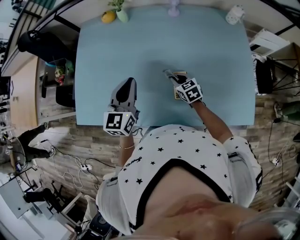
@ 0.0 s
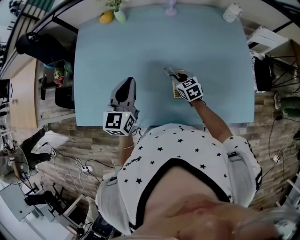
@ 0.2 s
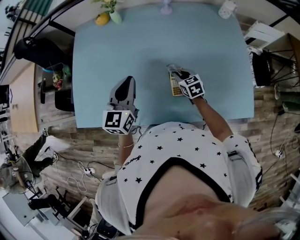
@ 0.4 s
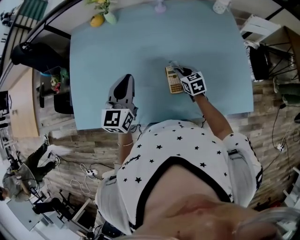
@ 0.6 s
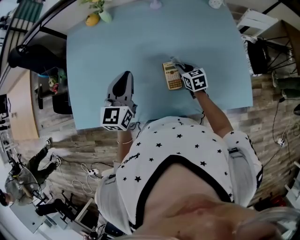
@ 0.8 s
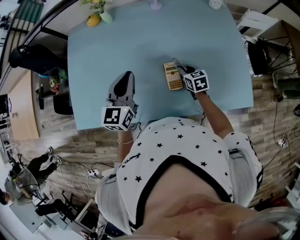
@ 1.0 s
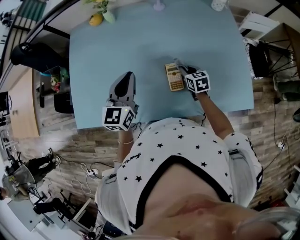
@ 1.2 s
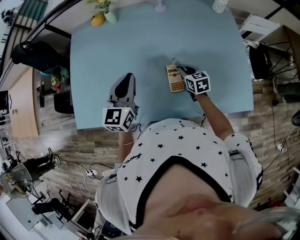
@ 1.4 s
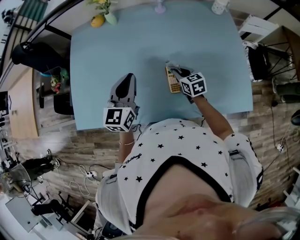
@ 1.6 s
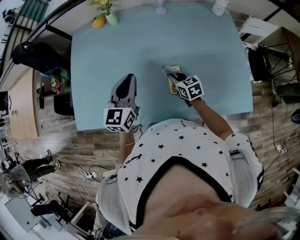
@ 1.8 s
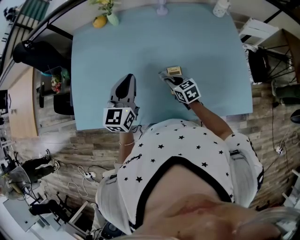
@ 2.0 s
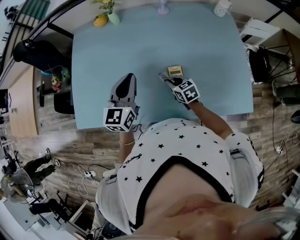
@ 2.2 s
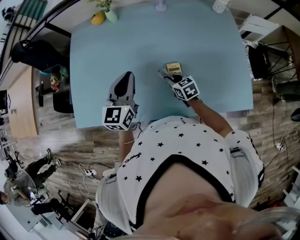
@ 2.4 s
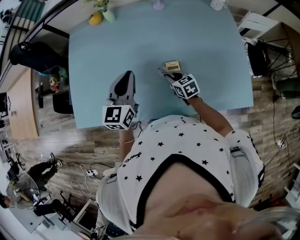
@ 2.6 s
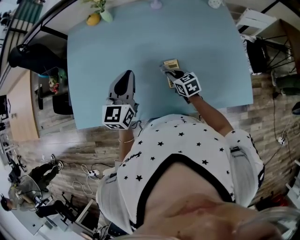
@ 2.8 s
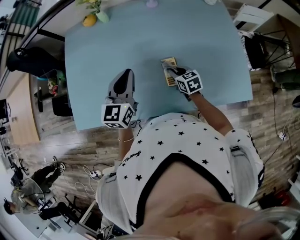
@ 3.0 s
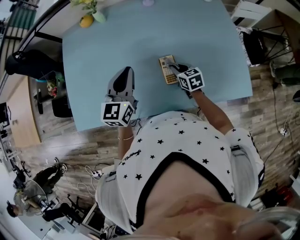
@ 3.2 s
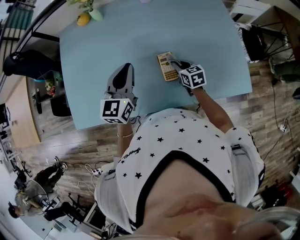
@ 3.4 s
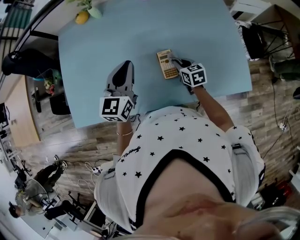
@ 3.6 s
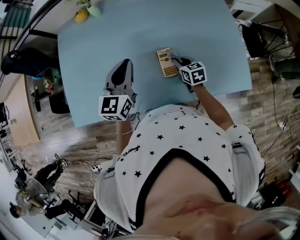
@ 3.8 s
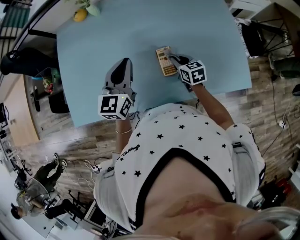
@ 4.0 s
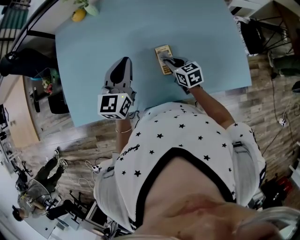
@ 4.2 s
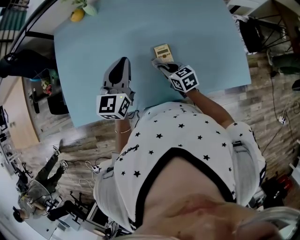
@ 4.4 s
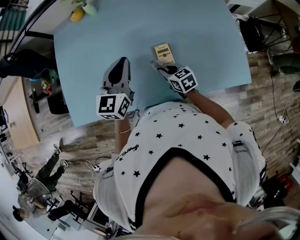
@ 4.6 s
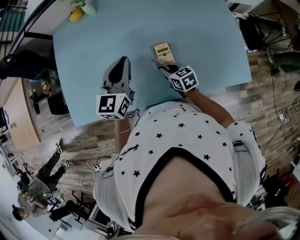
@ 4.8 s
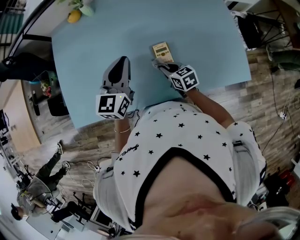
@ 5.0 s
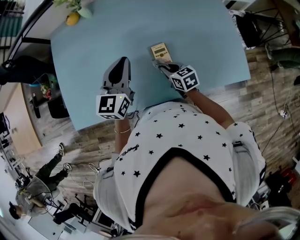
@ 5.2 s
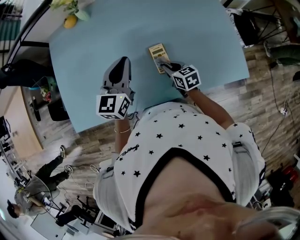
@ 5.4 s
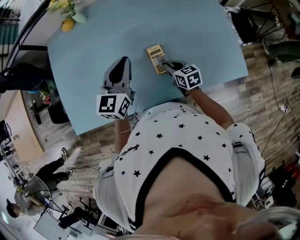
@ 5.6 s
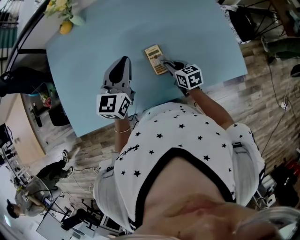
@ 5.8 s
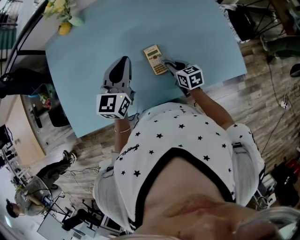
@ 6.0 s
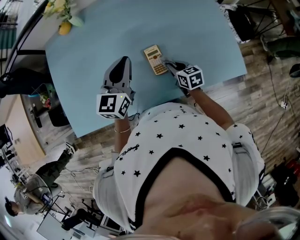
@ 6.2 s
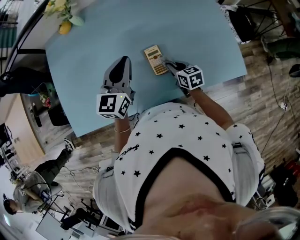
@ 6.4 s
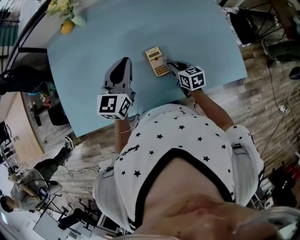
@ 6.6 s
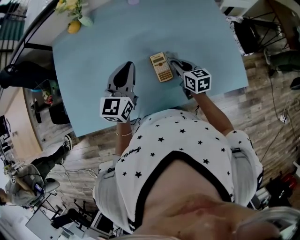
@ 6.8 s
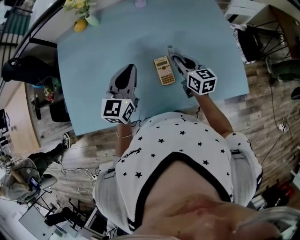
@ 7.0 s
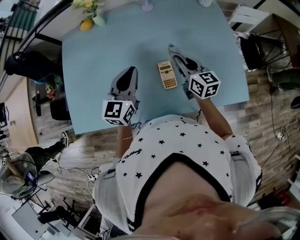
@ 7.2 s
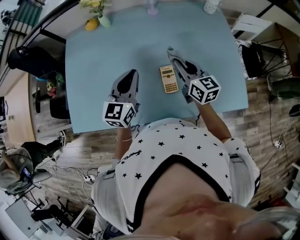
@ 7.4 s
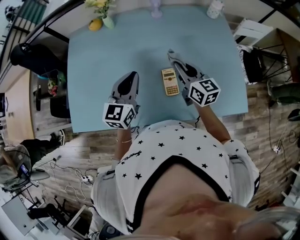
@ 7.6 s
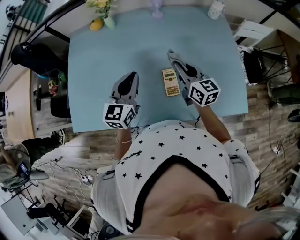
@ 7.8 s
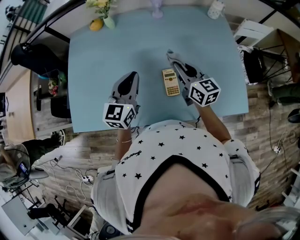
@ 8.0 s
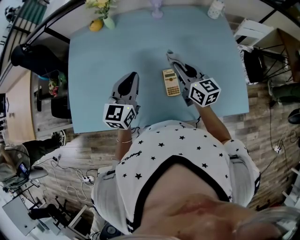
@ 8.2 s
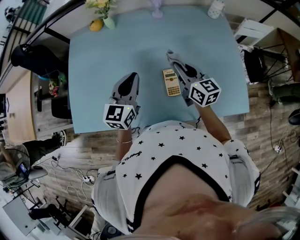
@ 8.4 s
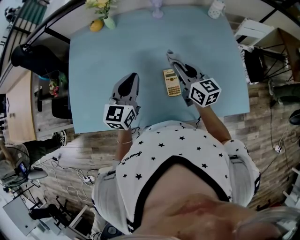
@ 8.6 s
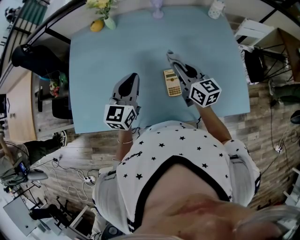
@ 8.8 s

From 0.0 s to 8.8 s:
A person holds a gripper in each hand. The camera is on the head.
From 0.0 s to 1.4 s: The right gripper shifts about 10 cm to the right.
From 3.0 s to 4.4 s: The right gripper ends up about 5 cm from where it was.
From 4.4 s to 5.8 s: The right gripper moves to the right, some 5 cm.
From 5.8 s to 7.4 s: The right gripper travels upward and forward by some 20 cm, and changes its angle by about 30 degrees.
From 7.4 s to 8.8 s: The grippers move only a little.

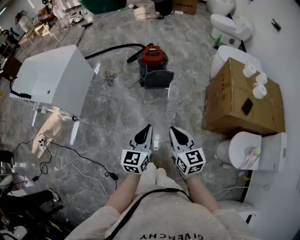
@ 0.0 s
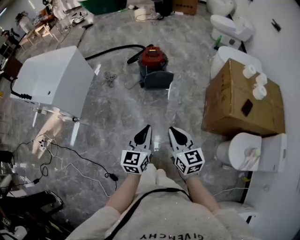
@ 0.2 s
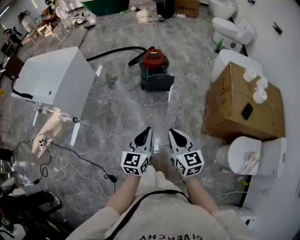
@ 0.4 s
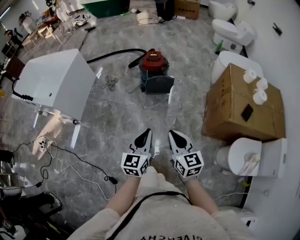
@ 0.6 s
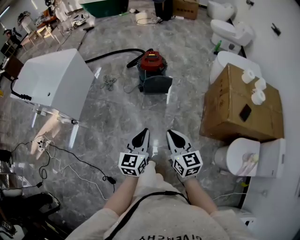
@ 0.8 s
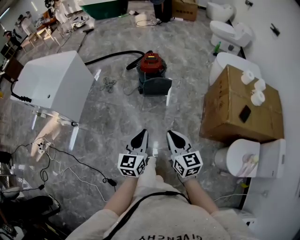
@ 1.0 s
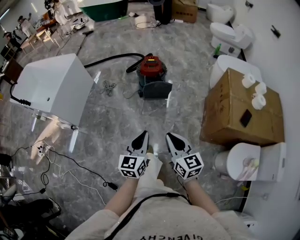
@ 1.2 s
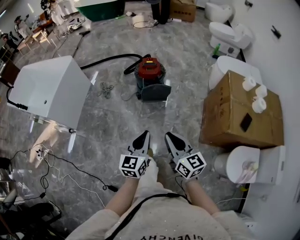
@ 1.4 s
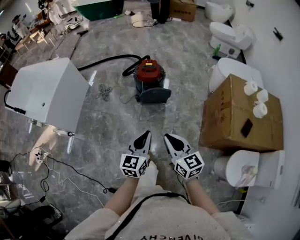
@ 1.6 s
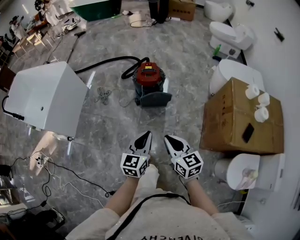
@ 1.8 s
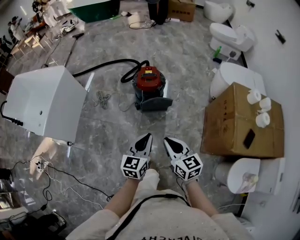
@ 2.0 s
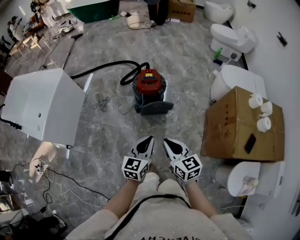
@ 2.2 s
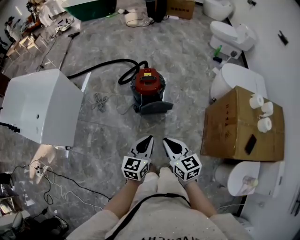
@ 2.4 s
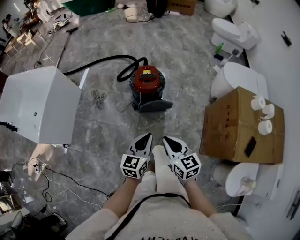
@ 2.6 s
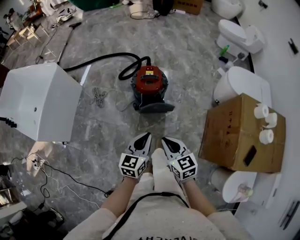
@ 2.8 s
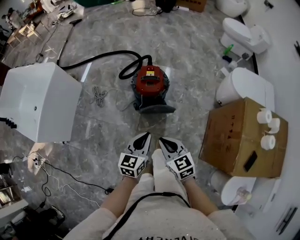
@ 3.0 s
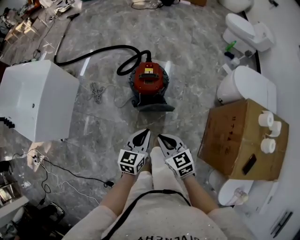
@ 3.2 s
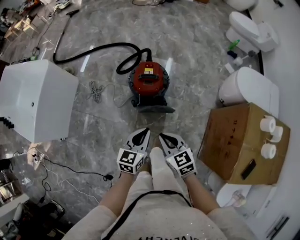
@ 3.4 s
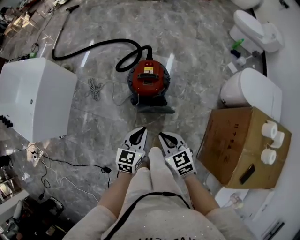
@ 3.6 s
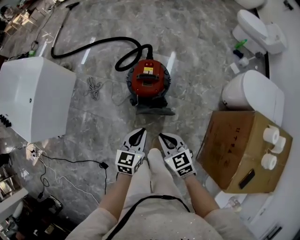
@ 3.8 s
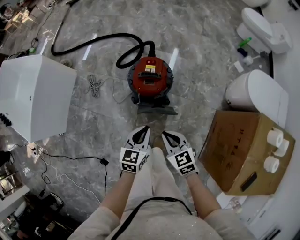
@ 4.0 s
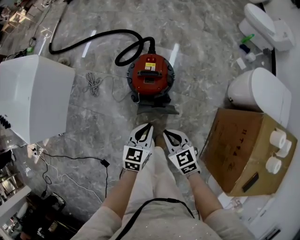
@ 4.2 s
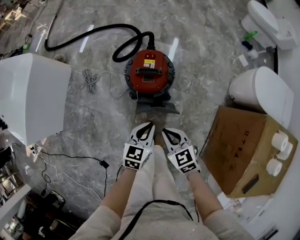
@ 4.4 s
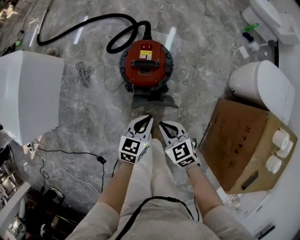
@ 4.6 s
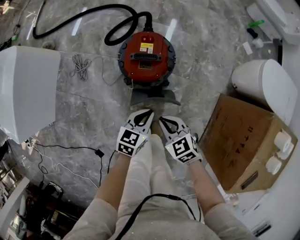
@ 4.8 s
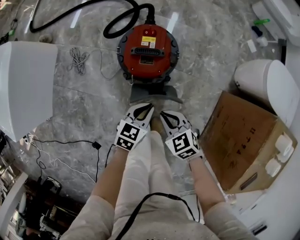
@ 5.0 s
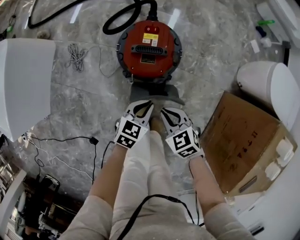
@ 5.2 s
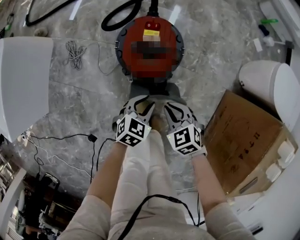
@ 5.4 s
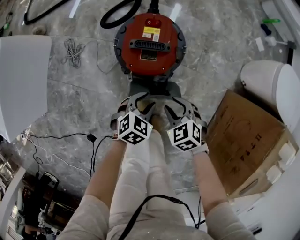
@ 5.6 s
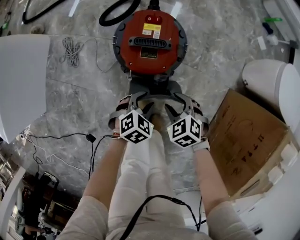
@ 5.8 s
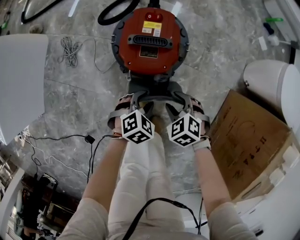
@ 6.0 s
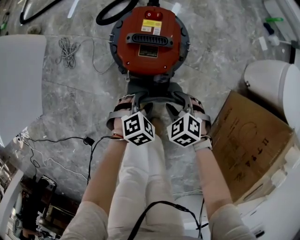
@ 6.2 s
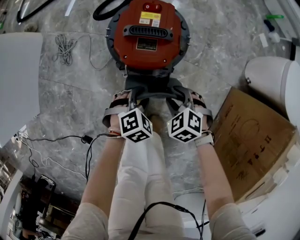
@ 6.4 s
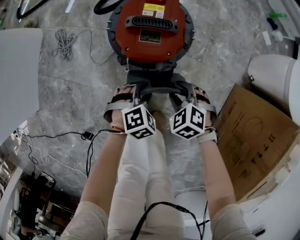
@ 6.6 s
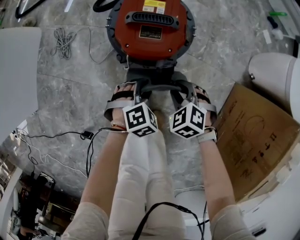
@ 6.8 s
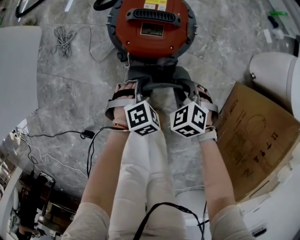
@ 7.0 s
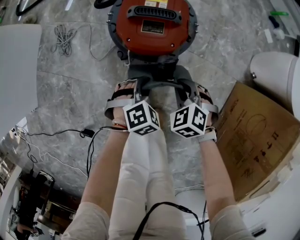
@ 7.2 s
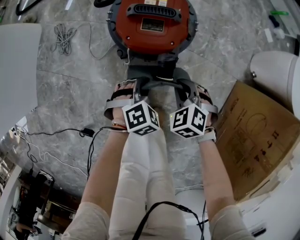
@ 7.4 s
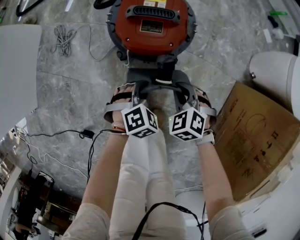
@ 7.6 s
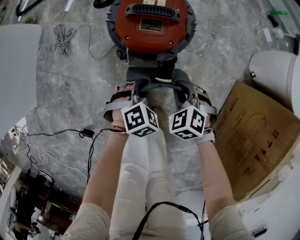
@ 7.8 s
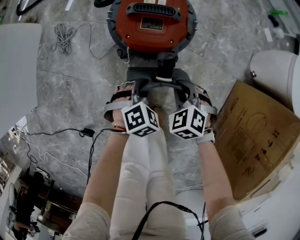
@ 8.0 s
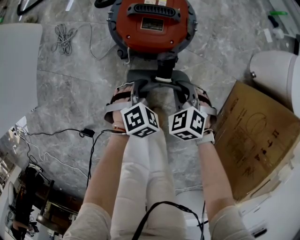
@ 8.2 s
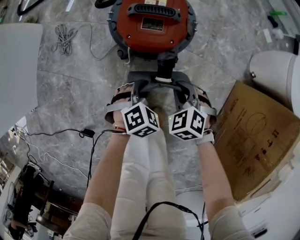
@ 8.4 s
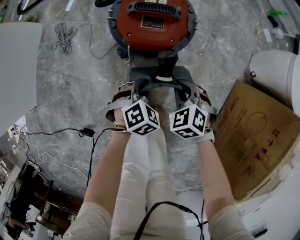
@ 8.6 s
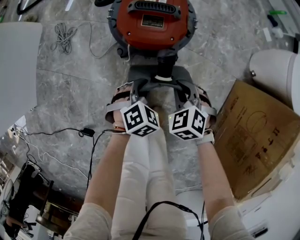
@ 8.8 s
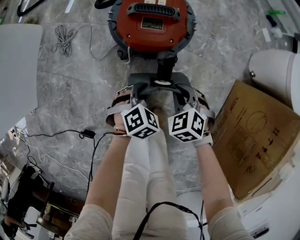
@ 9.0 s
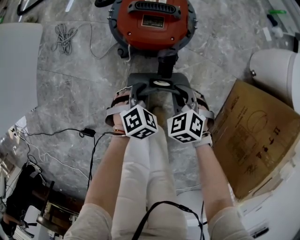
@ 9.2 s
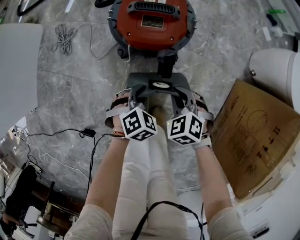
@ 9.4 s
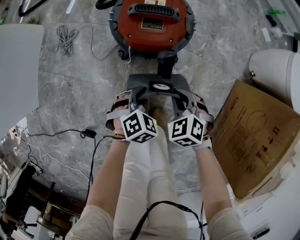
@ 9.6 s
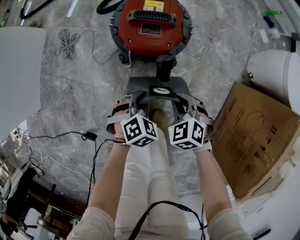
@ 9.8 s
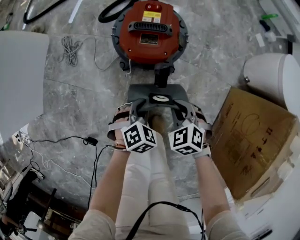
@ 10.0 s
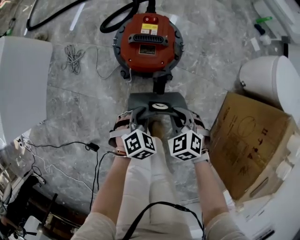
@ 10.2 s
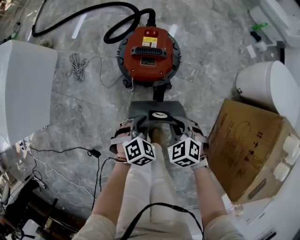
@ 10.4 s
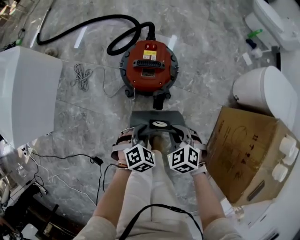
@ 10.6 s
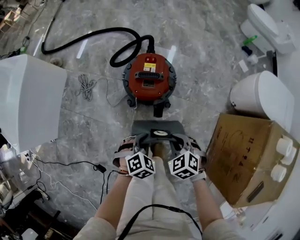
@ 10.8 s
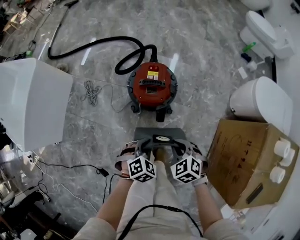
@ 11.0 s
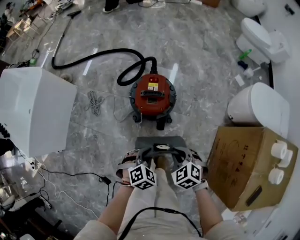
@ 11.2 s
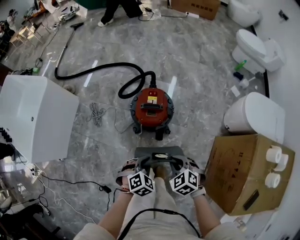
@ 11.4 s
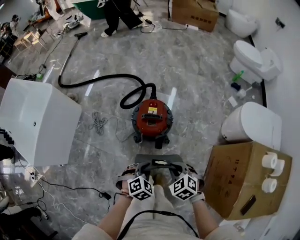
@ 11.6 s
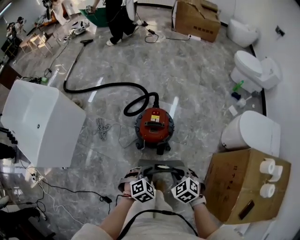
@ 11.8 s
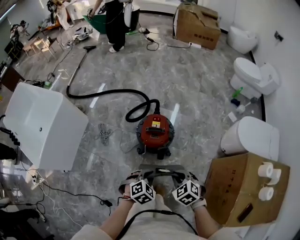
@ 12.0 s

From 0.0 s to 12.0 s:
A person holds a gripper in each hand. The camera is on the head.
From 0.0 s to 1.6 s: Both grippers travel together forward, approximately 15 cm.
From 1.6 s to 3.0 s: The right gripper moves forward and downward, some 25 cm; the left gripper shifts some 25 cm forward.
From 3.0 s to 4.4 s: Both grippers travel together downward and forward, some 20 cm.
From 4.4 s to 6.0 s: Both grippers move downward, roughly 20 cm. The left gripper turns by about 50 degrees, and opens its fingers; the right gripper changes its angle by some 30 degrees, and opens its fingers.
From 6.0 s to 7.6 s: The left gripper closes. The right gripper closes up.
From 7.6 s to 9.0 s: The grippers stay close to where they were, moving slightly.
From 9.0 s to 10.4 s: Both grippers travel together upward, about 10 cm.
From 10.4 s to 12.0 s: Both grippers travel together upward, some 20 cm.

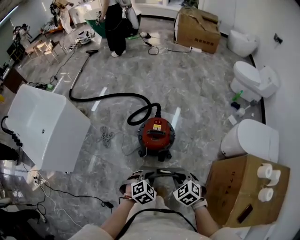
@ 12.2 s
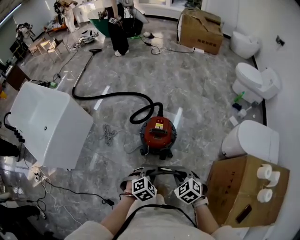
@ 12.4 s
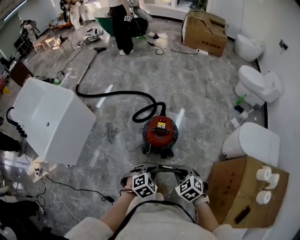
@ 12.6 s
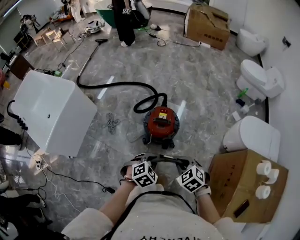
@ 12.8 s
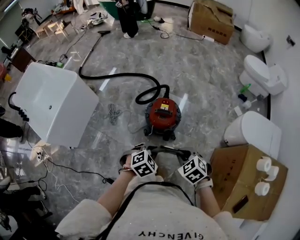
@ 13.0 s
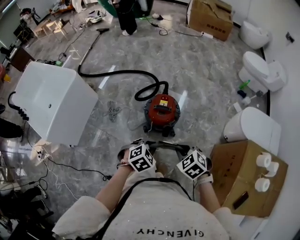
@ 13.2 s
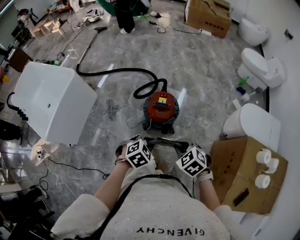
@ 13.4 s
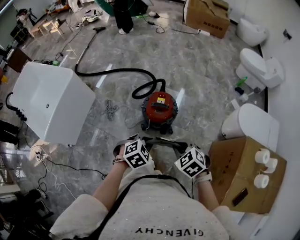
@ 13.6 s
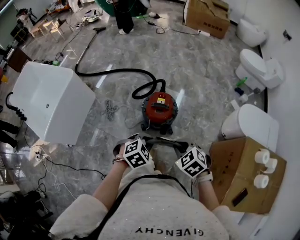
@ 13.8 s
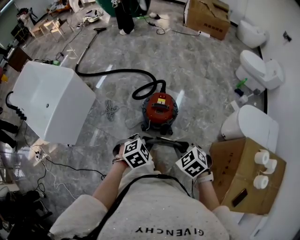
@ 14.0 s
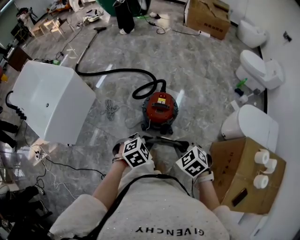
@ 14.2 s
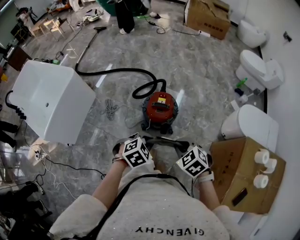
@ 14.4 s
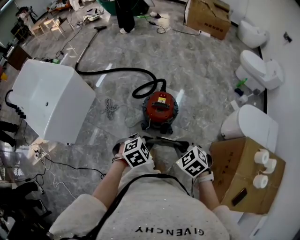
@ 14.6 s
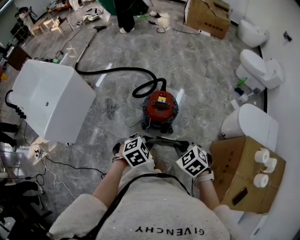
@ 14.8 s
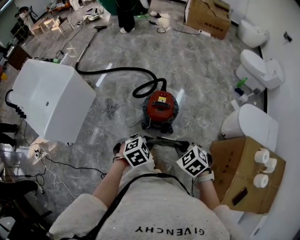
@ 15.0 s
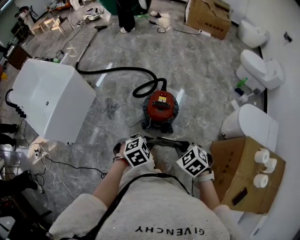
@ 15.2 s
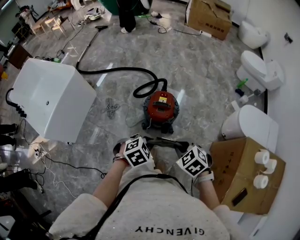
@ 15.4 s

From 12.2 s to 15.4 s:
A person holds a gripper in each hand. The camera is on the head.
From 12.2 s to 13.8 s: Both grippers travel together upward, some 10 cm.
From 13.8 s to 15.4 s: The grippers stay close to where they were, moving slightly.
